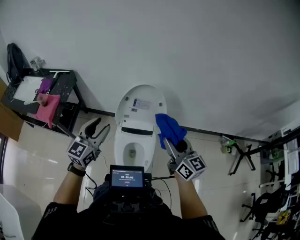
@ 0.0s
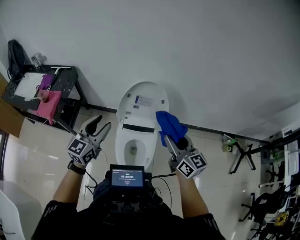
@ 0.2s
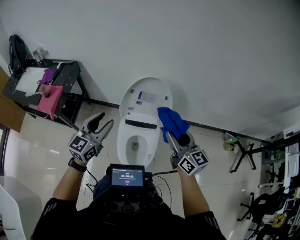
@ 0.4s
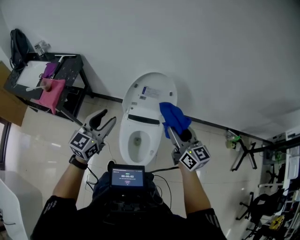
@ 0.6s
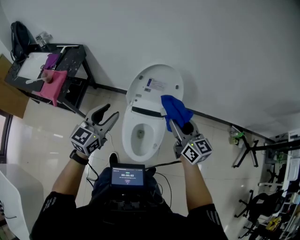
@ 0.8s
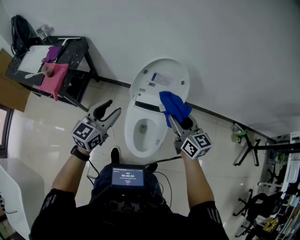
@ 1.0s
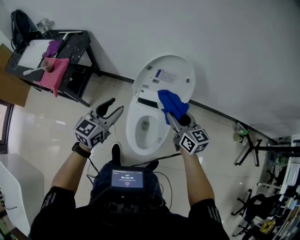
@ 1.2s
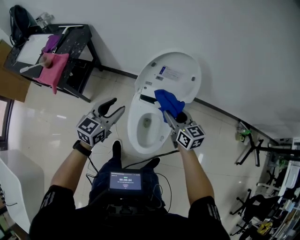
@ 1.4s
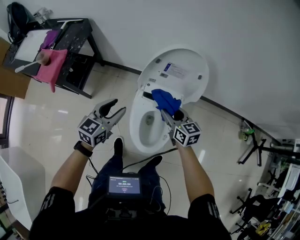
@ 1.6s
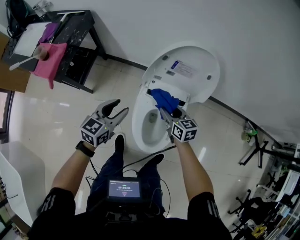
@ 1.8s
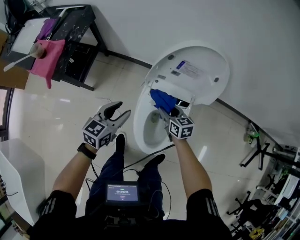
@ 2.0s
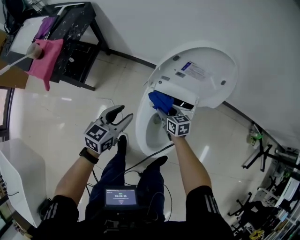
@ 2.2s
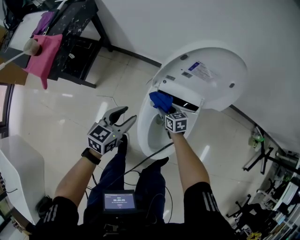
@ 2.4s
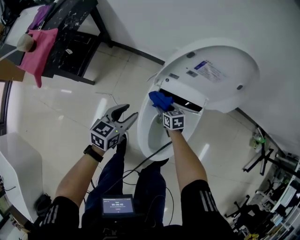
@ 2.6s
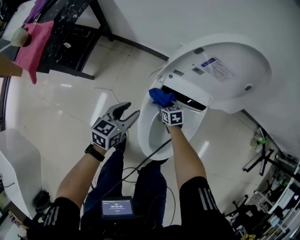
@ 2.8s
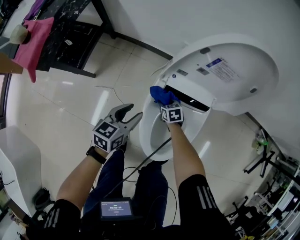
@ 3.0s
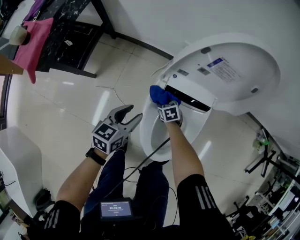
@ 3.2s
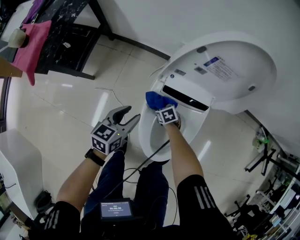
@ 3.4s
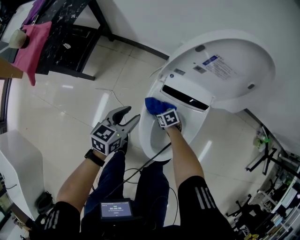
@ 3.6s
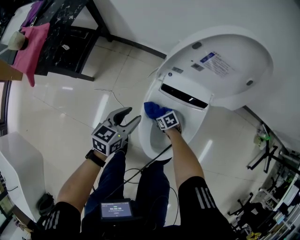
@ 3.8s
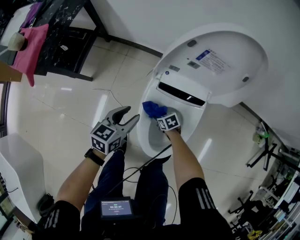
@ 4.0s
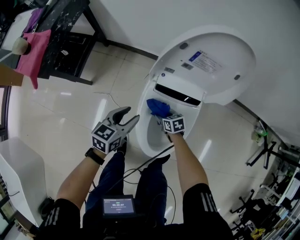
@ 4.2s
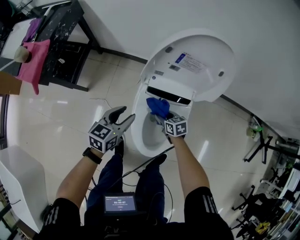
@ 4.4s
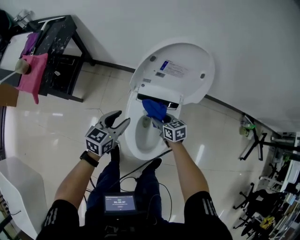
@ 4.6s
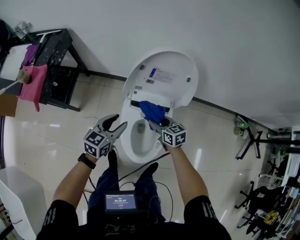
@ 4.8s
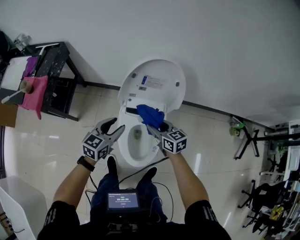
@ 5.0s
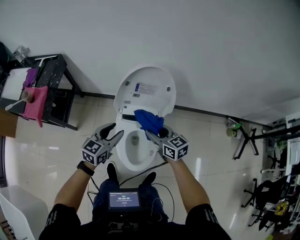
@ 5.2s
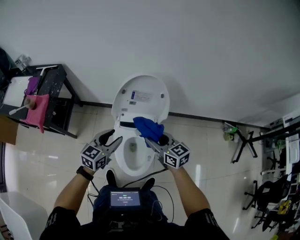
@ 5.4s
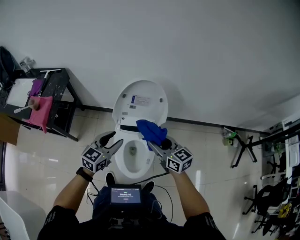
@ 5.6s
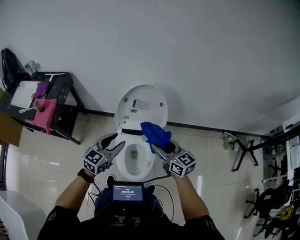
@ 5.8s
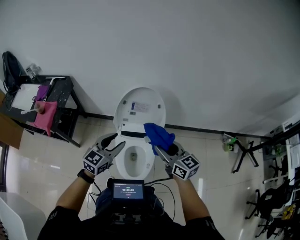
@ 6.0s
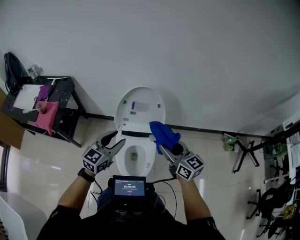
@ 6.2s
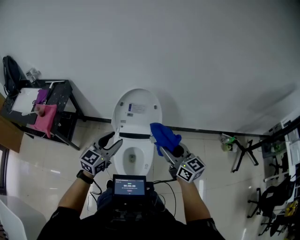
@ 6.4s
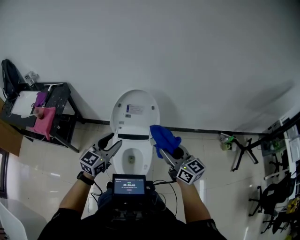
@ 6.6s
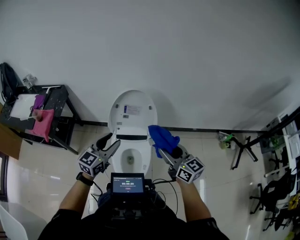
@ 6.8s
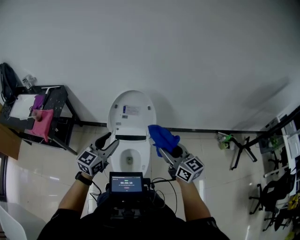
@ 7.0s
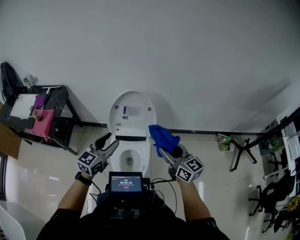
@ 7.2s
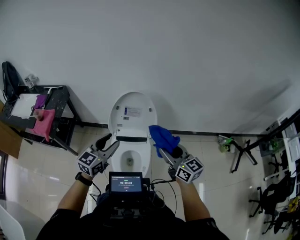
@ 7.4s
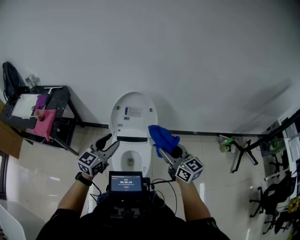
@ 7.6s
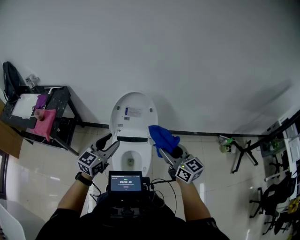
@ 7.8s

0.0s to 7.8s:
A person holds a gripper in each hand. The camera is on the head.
0.0s to 1.6s: The left gripper heads downward, covering some 20 cm, and swivels approximately 20 degrees; the right gripper moves downward, forward and to the left, some 35 cm, and rotates roughly 30 degrees.
1.6s to 3.2s: The right gripper goes roughly 50 cm downward, and angles its fingers downward, by about 40 degrees; the left gripper moves downward, roughly 25 cm.
3.2s to 4.6s: The right gripper shifts about 25 cm upward, and swivels about 30 degrees, while the left gripper heads upward, covering roughly 10 cm.
4.6s to 6.2s: The left gripper travels upward by about 30 cm, and turns by roughly 30 degrees. The right gripper travels upward by approximately 40 cm, and tilts its fingers approximately 30 degrees upward.
6.2s to 7.8s: The right gripper moves about 5 cm.

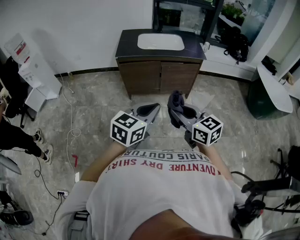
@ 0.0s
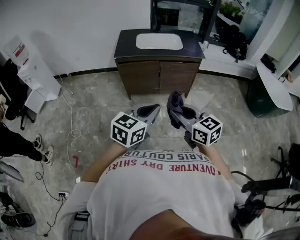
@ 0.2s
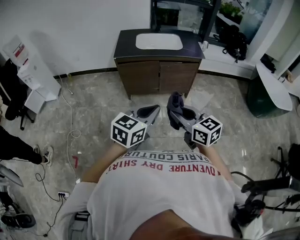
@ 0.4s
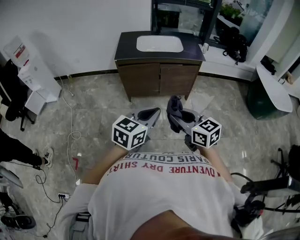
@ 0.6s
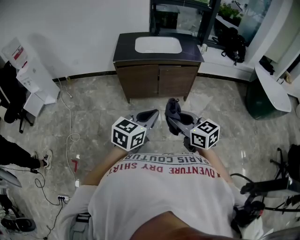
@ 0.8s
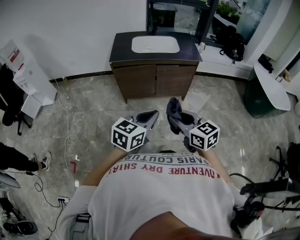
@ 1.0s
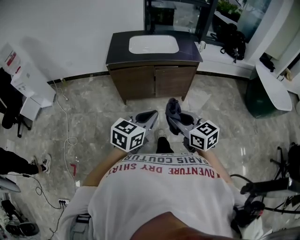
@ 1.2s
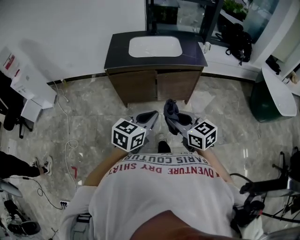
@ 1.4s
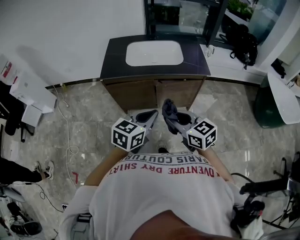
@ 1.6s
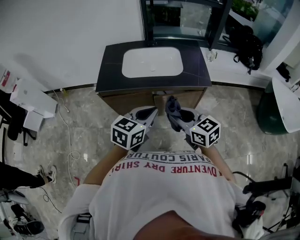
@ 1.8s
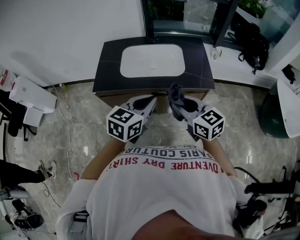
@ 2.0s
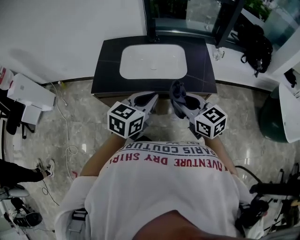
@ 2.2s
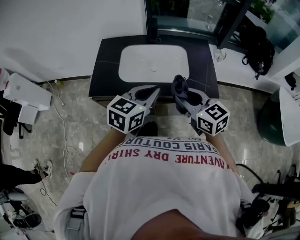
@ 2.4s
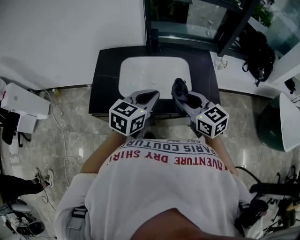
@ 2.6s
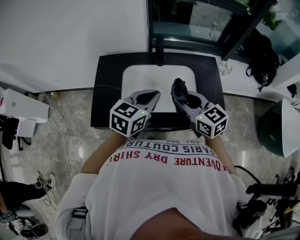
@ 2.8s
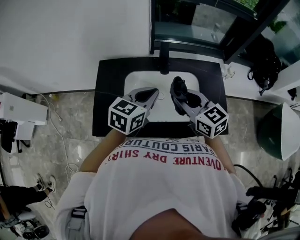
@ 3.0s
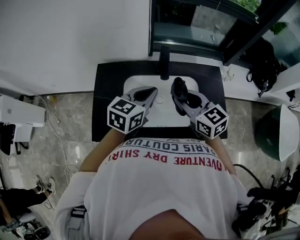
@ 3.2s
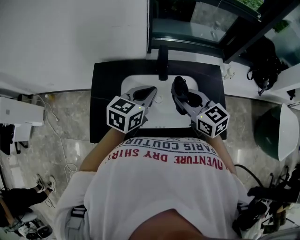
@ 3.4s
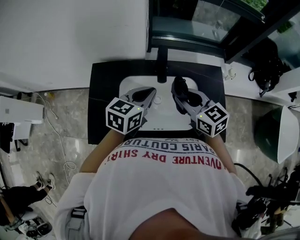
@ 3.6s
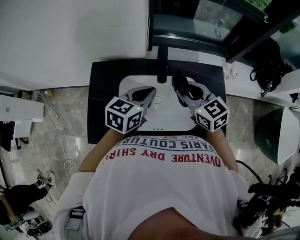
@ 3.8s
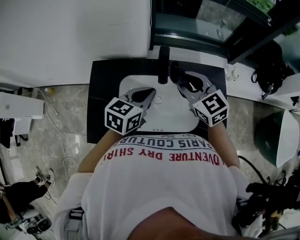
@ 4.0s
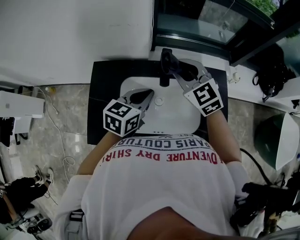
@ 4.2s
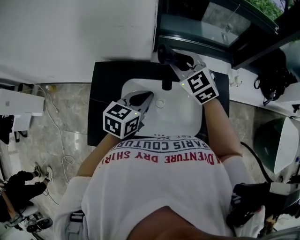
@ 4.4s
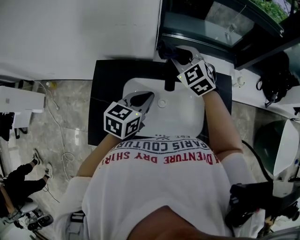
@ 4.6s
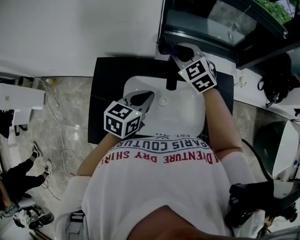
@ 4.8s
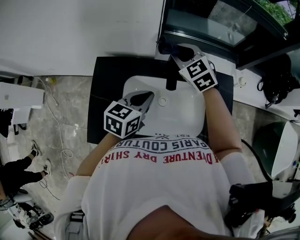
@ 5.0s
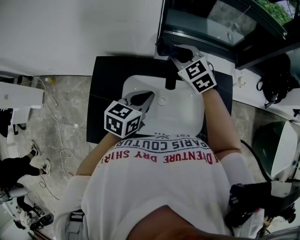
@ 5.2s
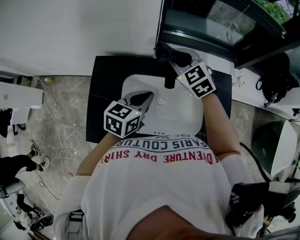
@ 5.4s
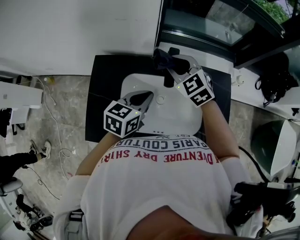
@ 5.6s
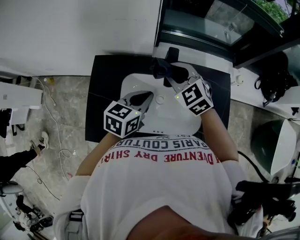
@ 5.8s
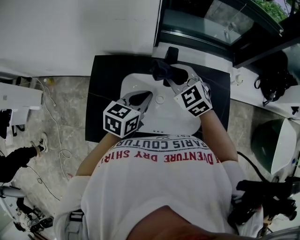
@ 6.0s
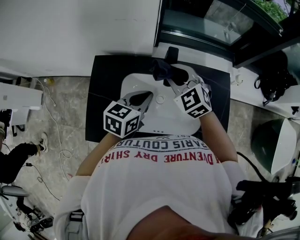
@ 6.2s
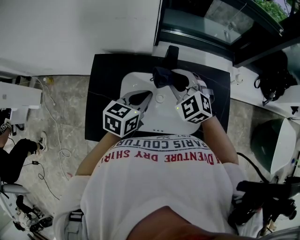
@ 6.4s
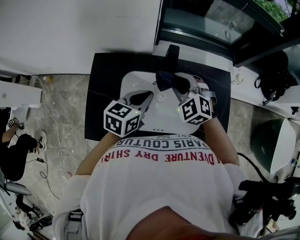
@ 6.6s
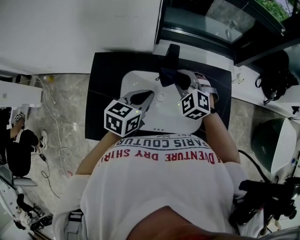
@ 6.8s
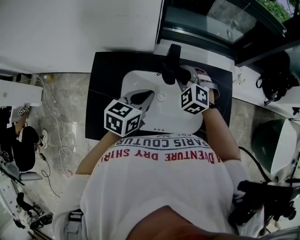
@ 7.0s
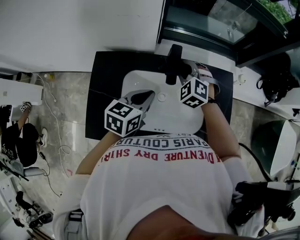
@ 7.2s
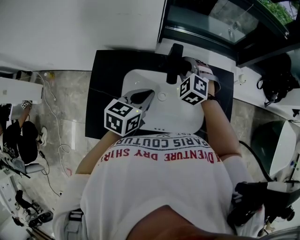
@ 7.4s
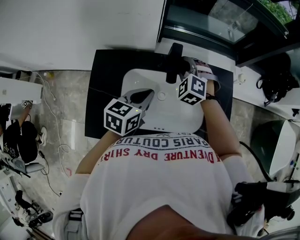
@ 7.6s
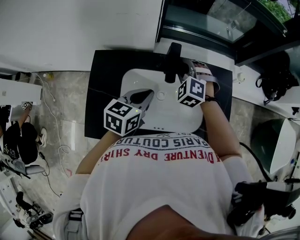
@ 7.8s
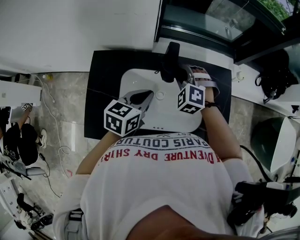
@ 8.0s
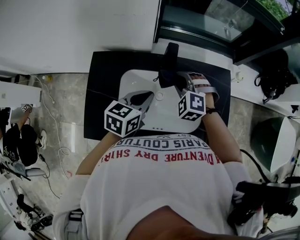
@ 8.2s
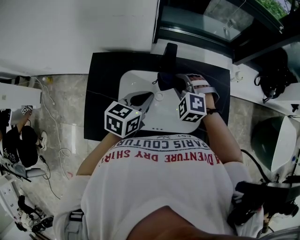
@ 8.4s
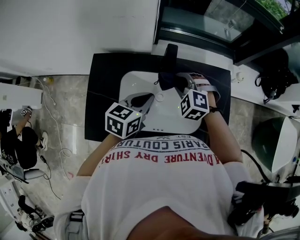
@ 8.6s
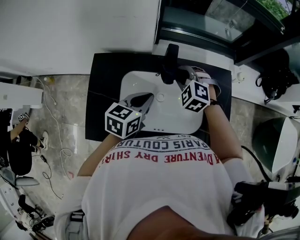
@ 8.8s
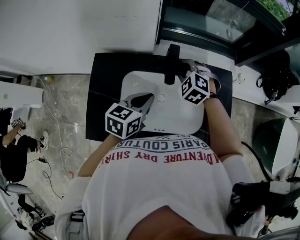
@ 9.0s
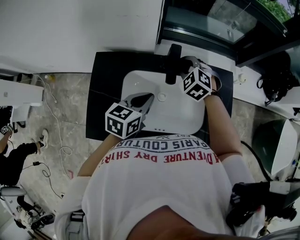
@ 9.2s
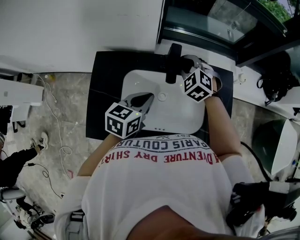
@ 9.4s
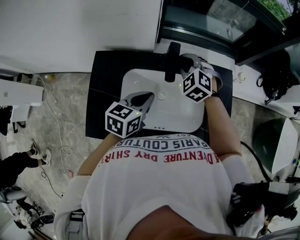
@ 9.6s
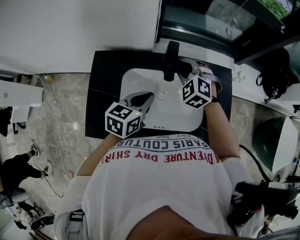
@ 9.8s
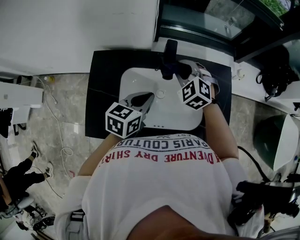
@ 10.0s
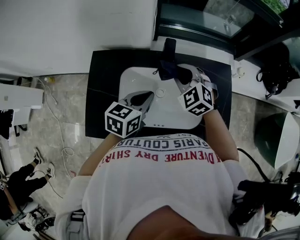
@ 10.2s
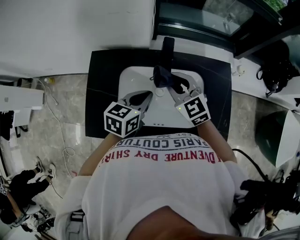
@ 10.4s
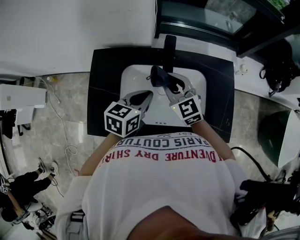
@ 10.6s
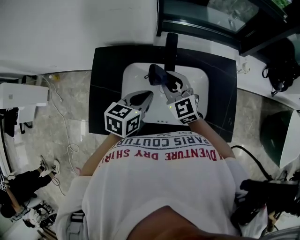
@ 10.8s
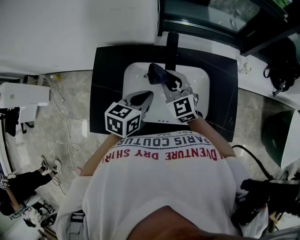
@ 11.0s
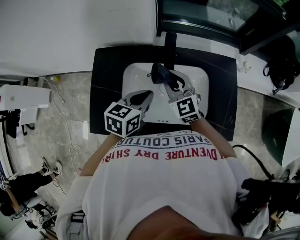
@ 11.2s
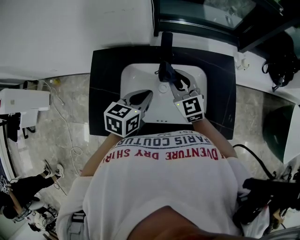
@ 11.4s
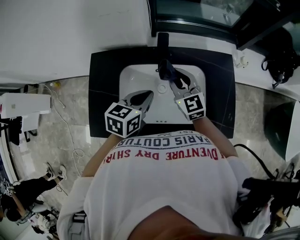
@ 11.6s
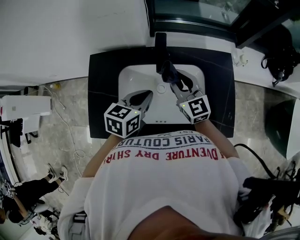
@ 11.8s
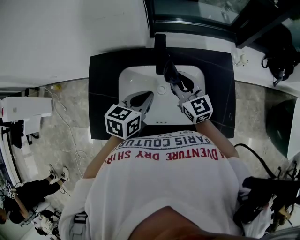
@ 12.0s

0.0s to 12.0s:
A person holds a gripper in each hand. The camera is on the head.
0.0s to 1.6s: The grippers both shift forward by some 25 cm.
1.6s to 3.0s: The pair of grippers is taken forward, some 60 cm.
3.0s to 4.4s: The right gripper goes approximately 25 cm forward, and rotates roughly 30 degrees. The left gripper heads forward, covering approximately 10 cm.
4.4s to 6.0s: The right gripper is displaced backward and downward by about 10 cm.
6.0s to 7.6s: The right gripper moves downward, some 5 cm, and rotates approximately 30 degrees.
7.6s to 9.0s: The right gripper moves approximately 10 cm backward and comes back.
9.0s to 10.4s: The right gripper moves backward, some 10 cm, and changes its angle by some 40 degrees.
10.4s to 12.0s: The right gripper moves to the right, approximately 5 cm, and swivels approximately 20 degrees.

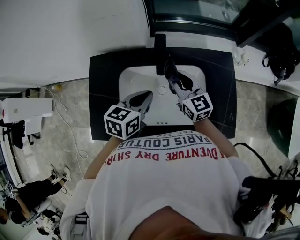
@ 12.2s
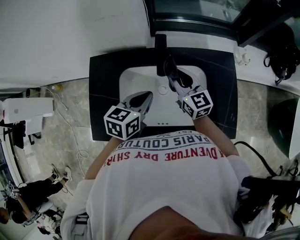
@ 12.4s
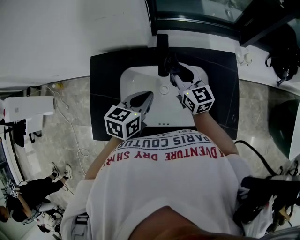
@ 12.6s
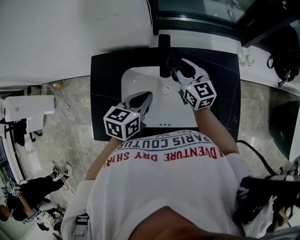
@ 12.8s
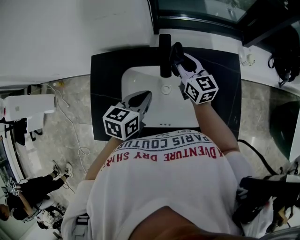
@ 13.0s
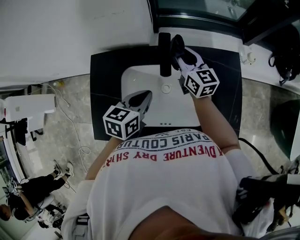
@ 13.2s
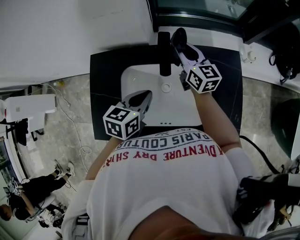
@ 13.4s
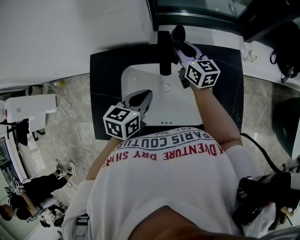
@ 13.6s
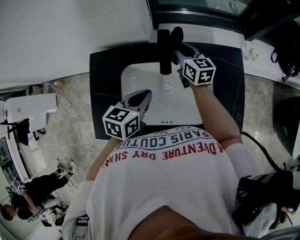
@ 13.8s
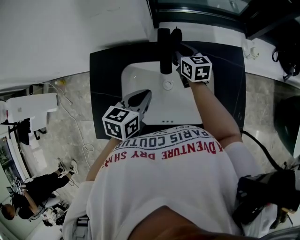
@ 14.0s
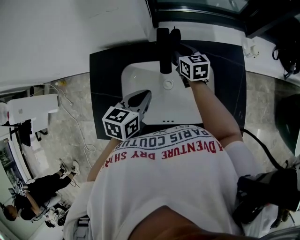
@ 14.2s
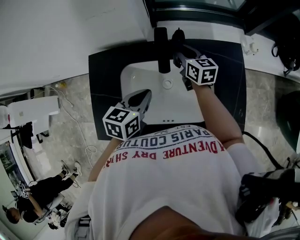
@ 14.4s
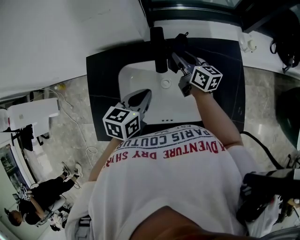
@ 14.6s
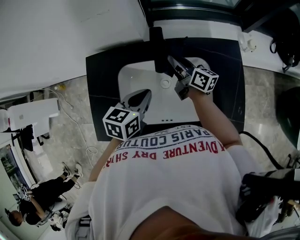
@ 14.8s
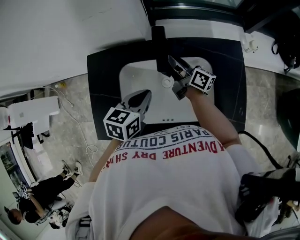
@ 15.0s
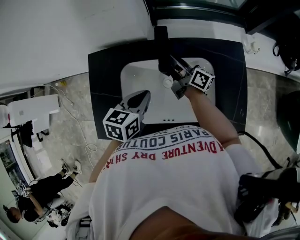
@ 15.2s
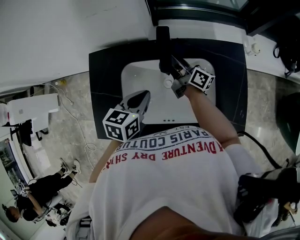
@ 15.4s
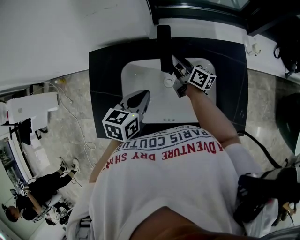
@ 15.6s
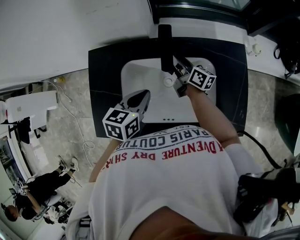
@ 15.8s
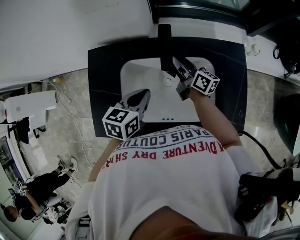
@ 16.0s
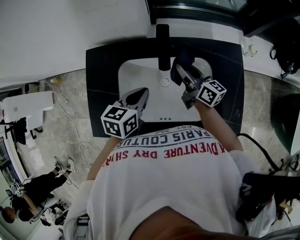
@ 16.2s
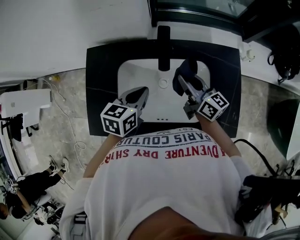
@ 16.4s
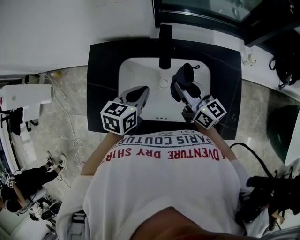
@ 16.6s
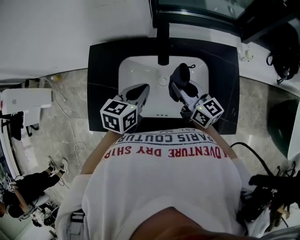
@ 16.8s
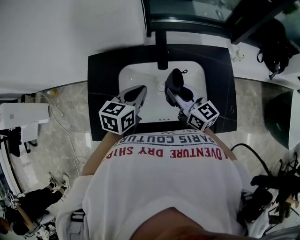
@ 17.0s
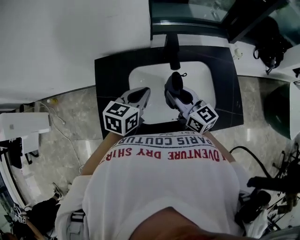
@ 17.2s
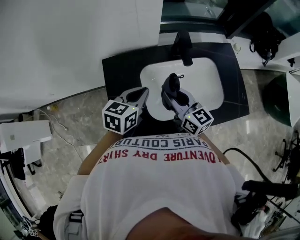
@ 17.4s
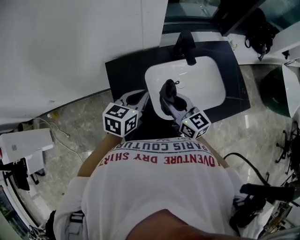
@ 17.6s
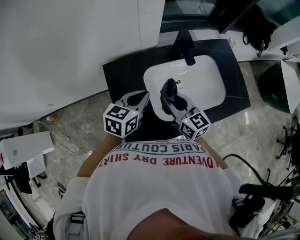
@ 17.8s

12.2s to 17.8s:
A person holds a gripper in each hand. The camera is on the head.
12.2s to 13.6s: The right gripper heads forward, covering roughly 15 cm.
13.6s to 15.0s: The right gripper goes about 5 cm downward, and twists about 40 degrees clockwise, seen from behind.
15.0s to 16.4s: The right gripper shifts approximately 10 cm backward and upward, and changes its angle by some 20 degrees.
16.4s to 17.8s: The right gripper shifts some 25 cm to the left and backward, and rotates approximately 30 degrees, while the left gripper moves to the left, some 15 cm, and rotates about 20 degrees.
